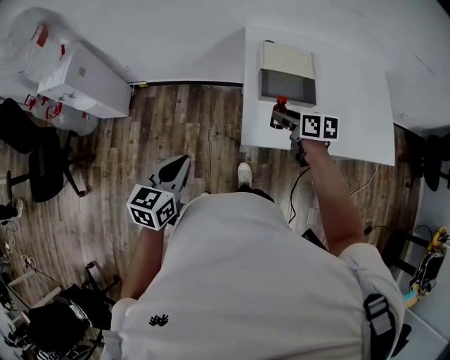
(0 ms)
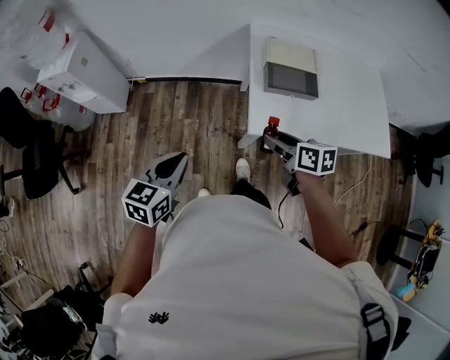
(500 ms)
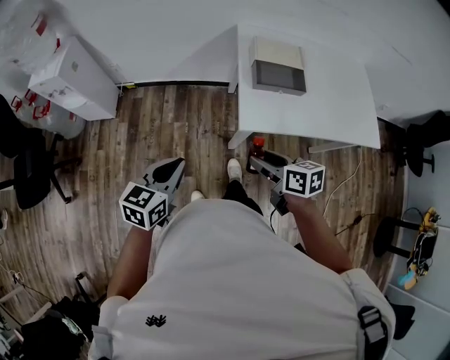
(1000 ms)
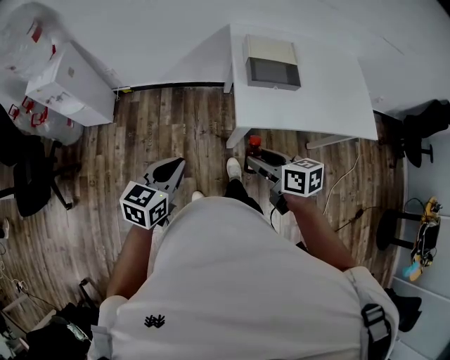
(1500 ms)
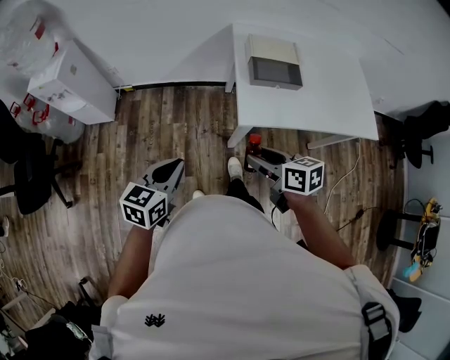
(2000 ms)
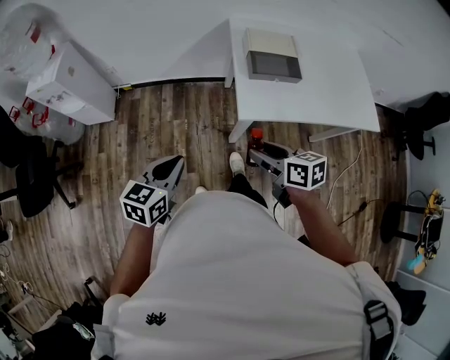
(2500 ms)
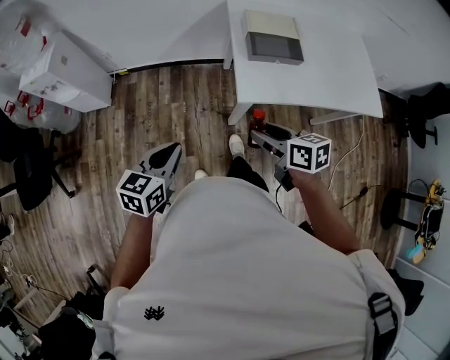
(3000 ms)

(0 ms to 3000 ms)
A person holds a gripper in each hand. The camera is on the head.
0 ms - 1500 ms: The right gripper is displaced backward and to the left by approximately 25 cm; the left gripper goes approximately 5 cm backward.
1500 ms - 3000 ms: The grippers stay close to where they were, moving slightly.

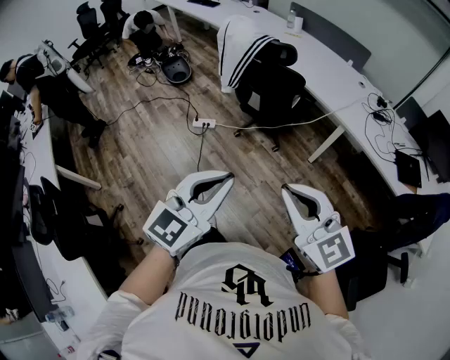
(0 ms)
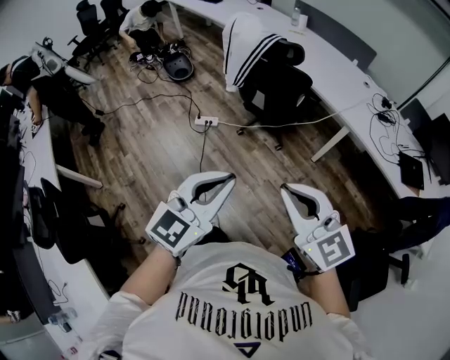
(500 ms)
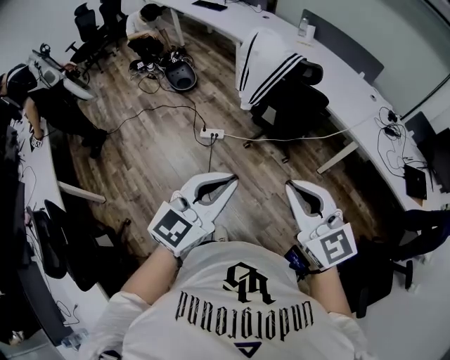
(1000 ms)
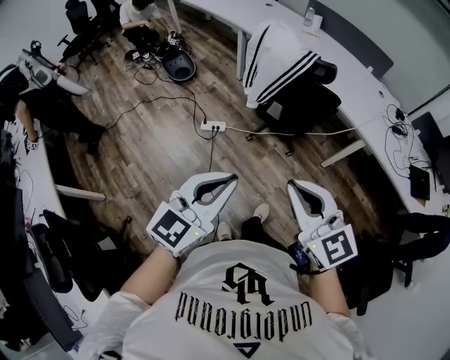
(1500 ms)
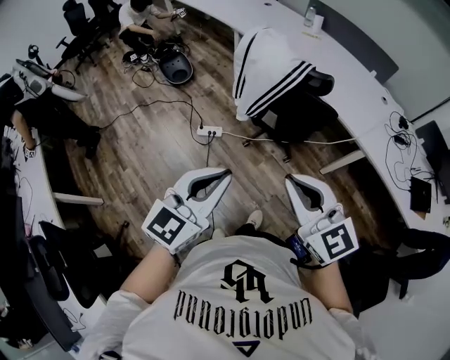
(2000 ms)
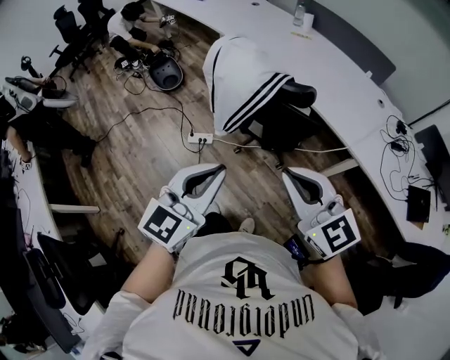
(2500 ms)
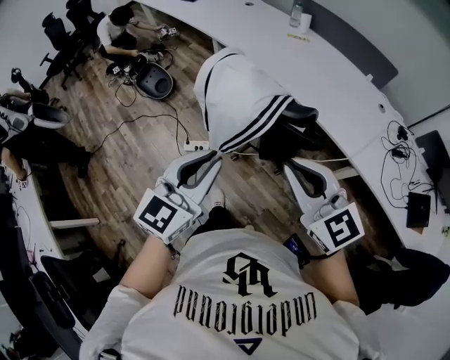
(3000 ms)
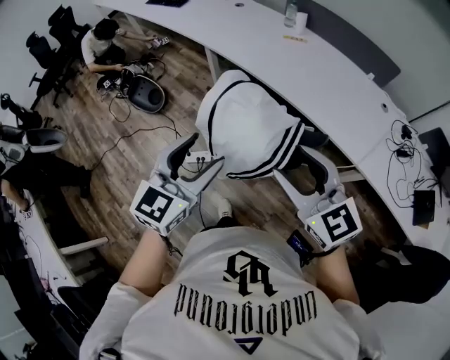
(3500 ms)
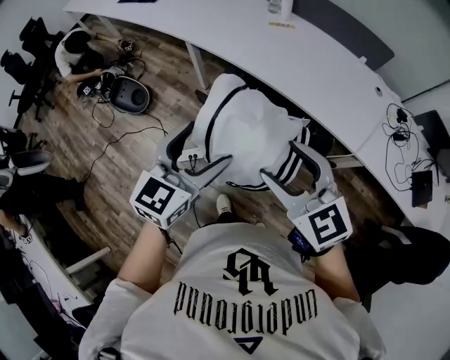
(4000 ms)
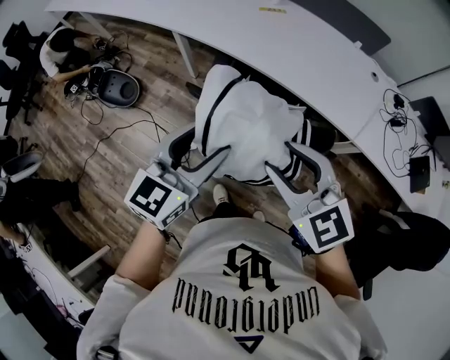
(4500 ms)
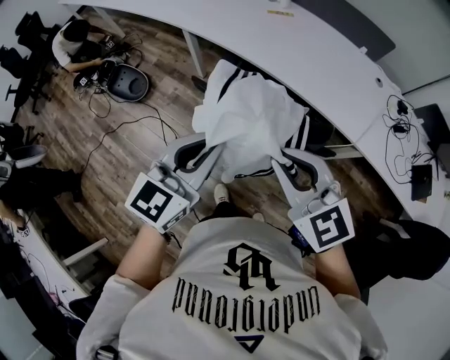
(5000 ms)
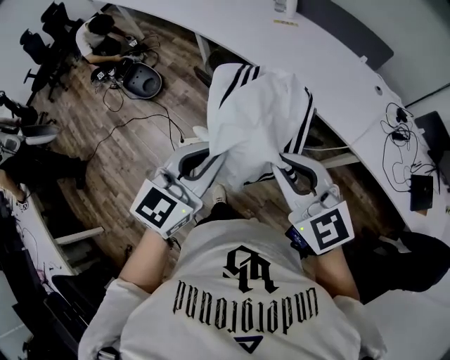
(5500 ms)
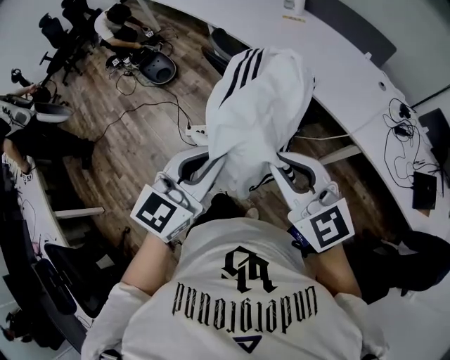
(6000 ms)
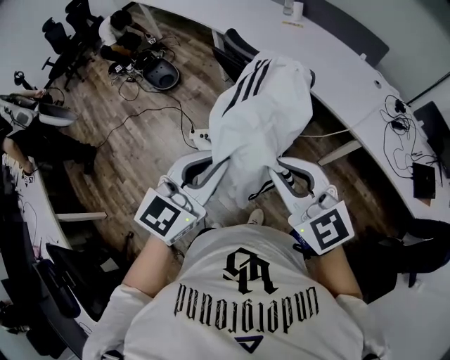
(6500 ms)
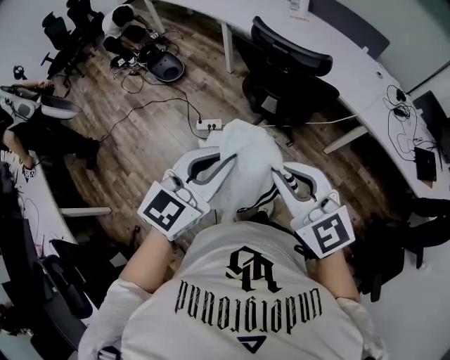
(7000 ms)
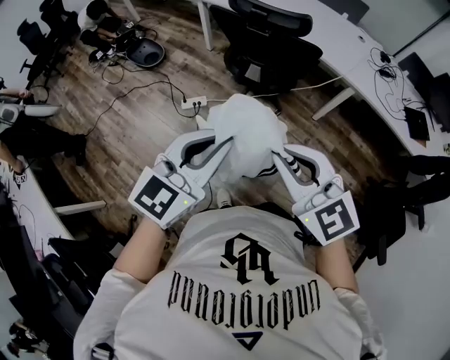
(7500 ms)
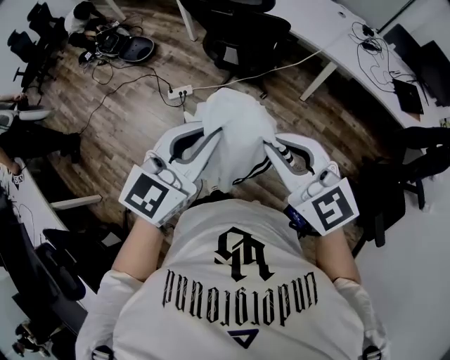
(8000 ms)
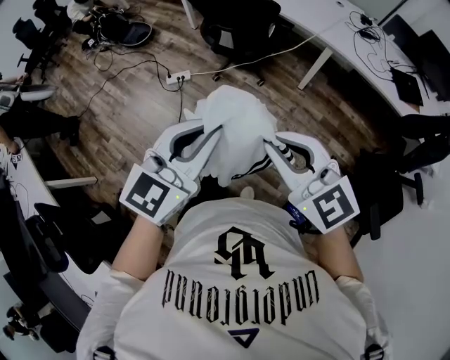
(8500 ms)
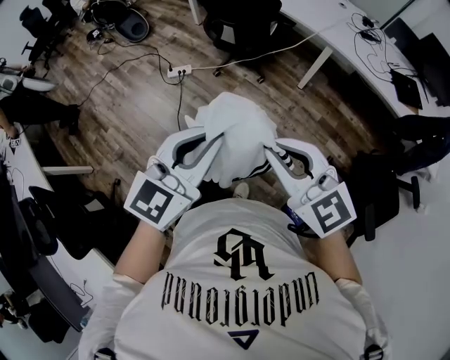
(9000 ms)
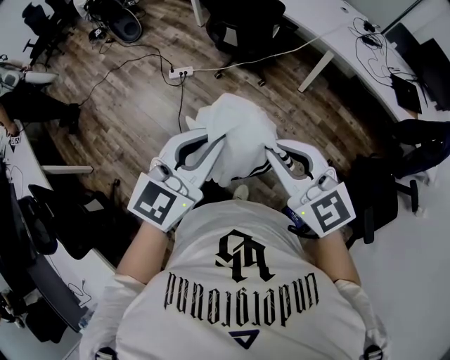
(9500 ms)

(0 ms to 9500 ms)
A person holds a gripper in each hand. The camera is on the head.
0 ms - 2000 ms: Both grippers travel together forward and to the left, about 30 cm.
2000 ms - 4000 ms: The grippers both shift forward by approximately 40 cm. The right gripper opens its fingers. Meanwhile the left gripper opens up.
4000 ms - 5500 ms: The grippers both shift backward and to the right by about 15 cm. The left gripper closes its fingers, while the right gripper closes up.
5500 ms - 7500 ms: Both grippers travel together backward, roughly 35 cm.
7500 ms - 9500 ms: The two grippers go some 25 cm backward and to the right.

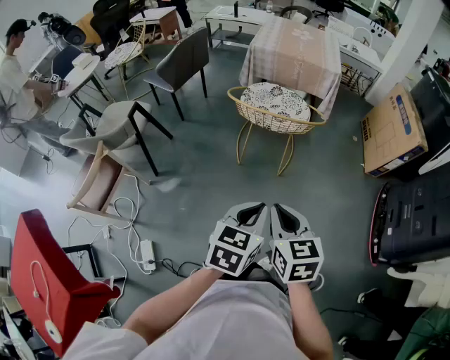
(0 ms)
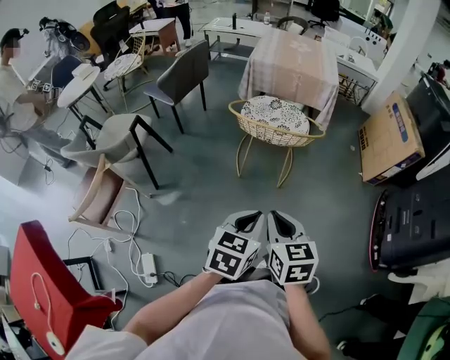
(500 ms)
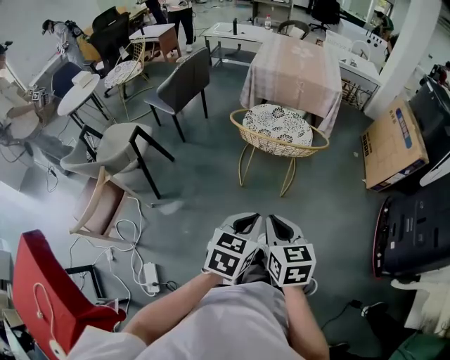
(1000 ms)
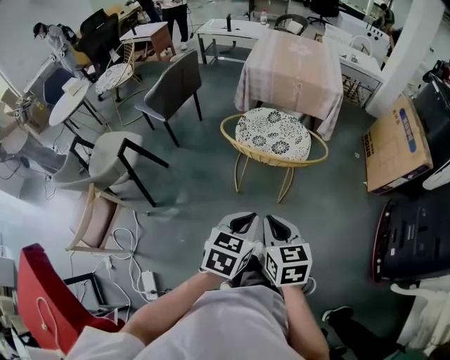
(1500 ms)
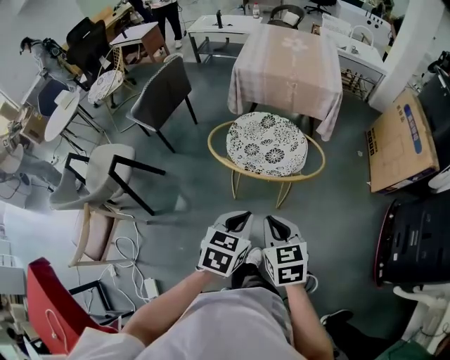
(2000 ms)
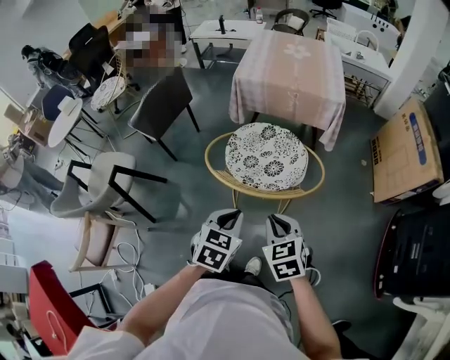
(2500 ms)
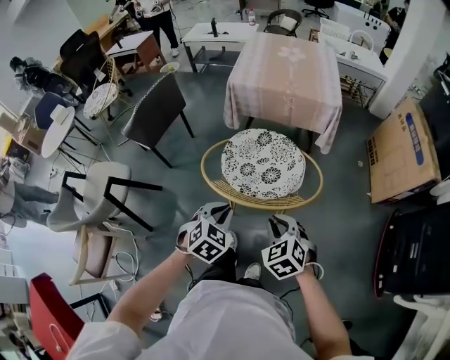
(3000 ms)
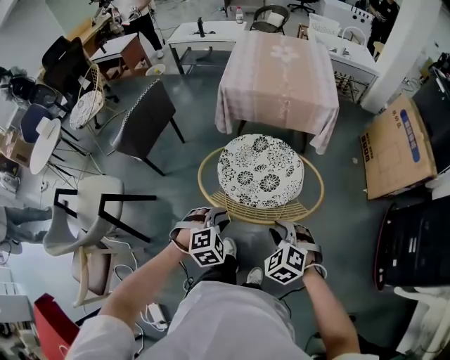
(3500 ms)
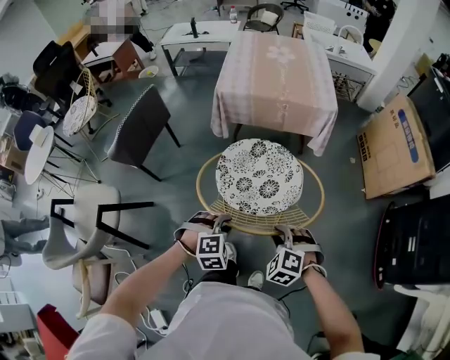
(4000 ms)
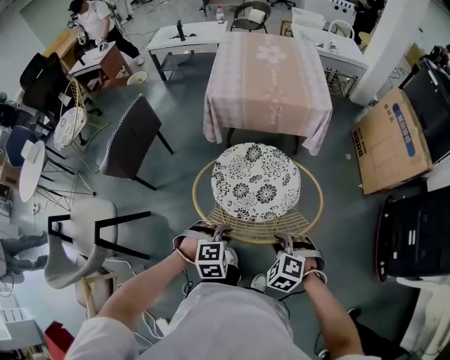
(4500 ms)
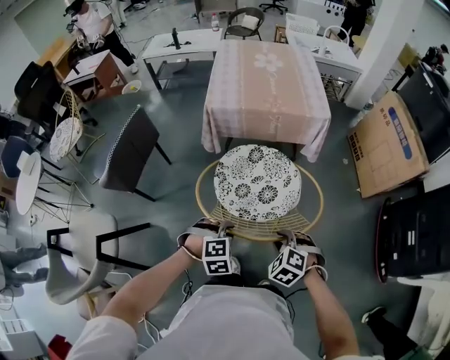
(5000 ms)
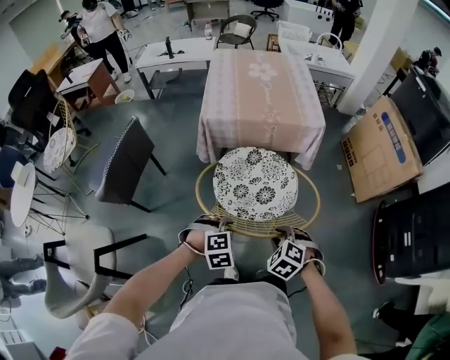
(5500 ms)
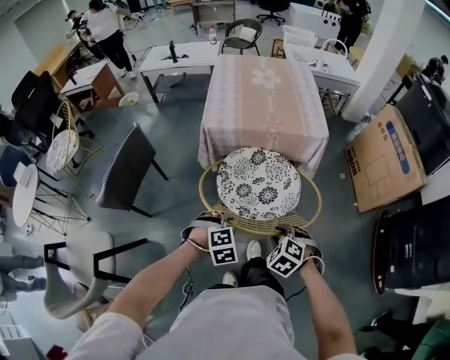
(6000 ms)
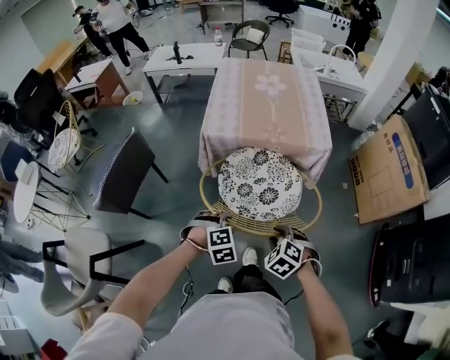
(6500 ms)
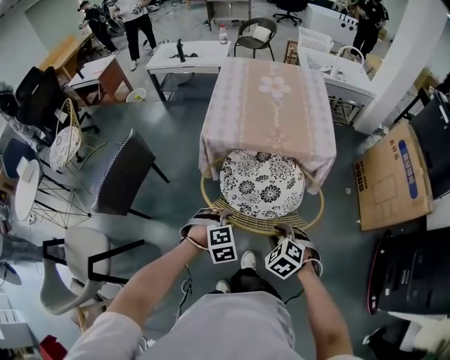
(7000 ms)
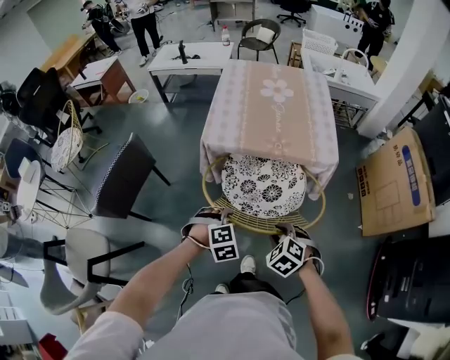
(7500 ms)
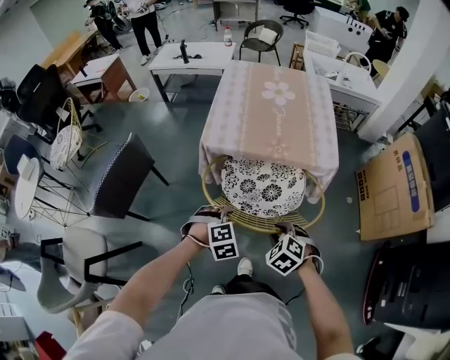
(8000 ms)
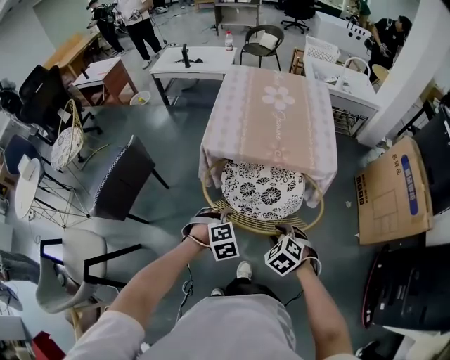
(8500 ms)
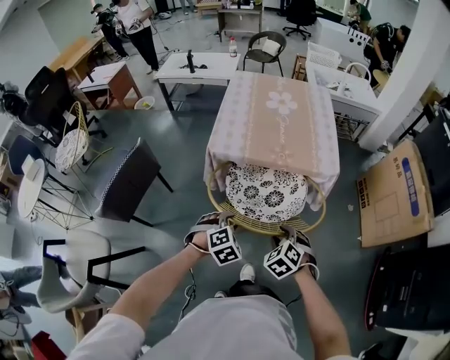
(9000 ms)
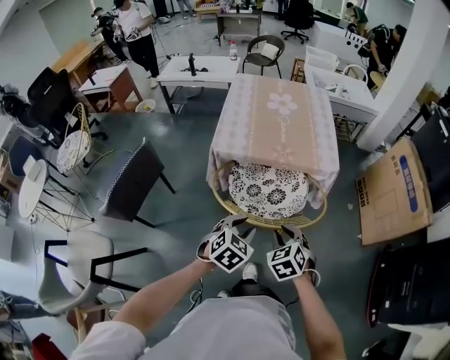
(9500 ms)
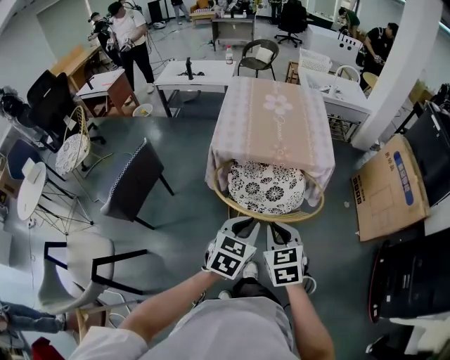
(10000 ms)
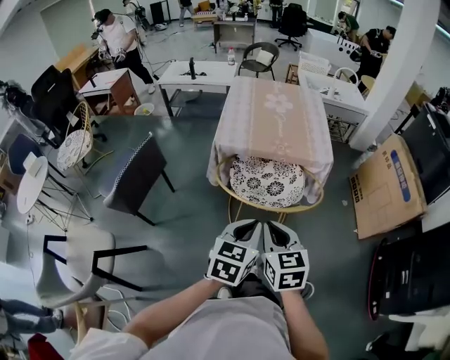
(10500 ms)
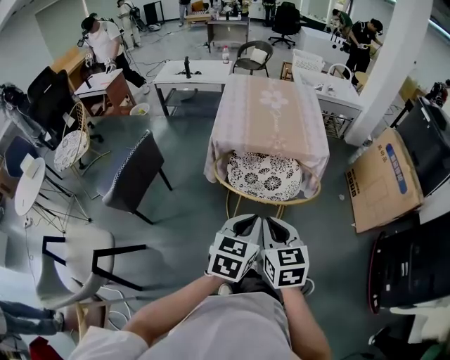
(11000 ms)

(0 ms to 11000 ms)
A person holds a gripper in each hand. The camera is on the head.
0 ms - 2000 ms: Both grippers travel together forward, approximately 25 cm.
2000 ms - 3500 ms: The right gripper moves forward and downward, some 15 cm, and twists about 40 degrees counterclockwise, seen from behind. The left gripper travels forward, downward and to the left by about 20 cm, rolls clockwise, seen from behind, by about 60 degrees, and opens.
3500 ms - 5500 ms: The grippers both shift forward by approximately 10 cm.
5500 ms - 7500 ms: The two grippers go about 20 cm forward.
7500 ms - 9000 ms: There are only small adjustments of the grippers.
9000 ms - 11000 ms: The grippers both shift upward and backward by approximately 25 cm. The left gripper tips its fingers upward by roughly 30 degrees, and closes its fingers. Meanwhile the right gripper points its fingers approximately 30 degrees further upward, and closes up.

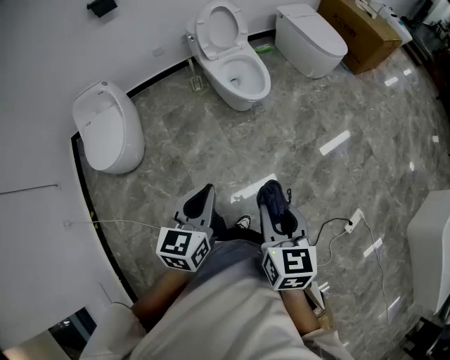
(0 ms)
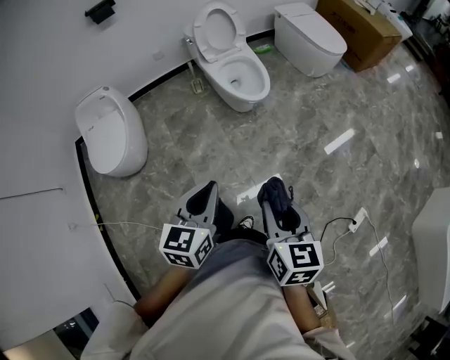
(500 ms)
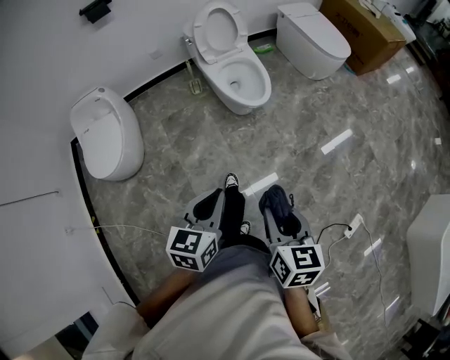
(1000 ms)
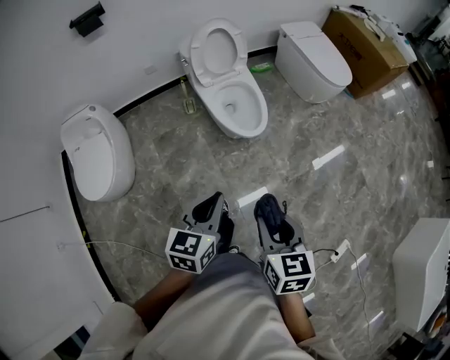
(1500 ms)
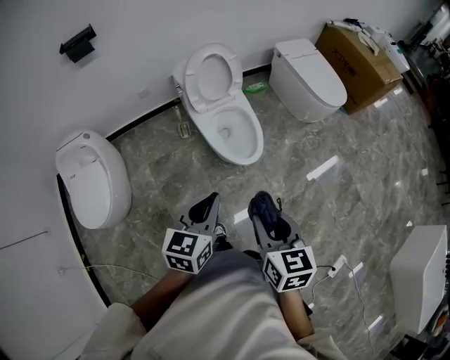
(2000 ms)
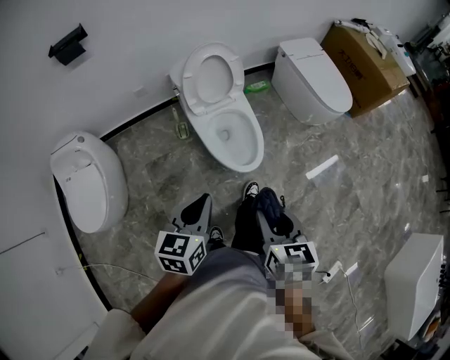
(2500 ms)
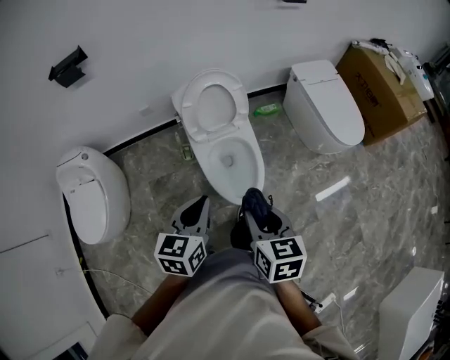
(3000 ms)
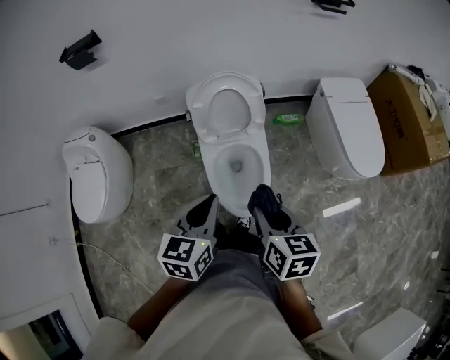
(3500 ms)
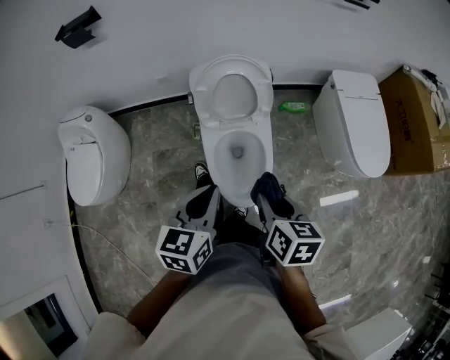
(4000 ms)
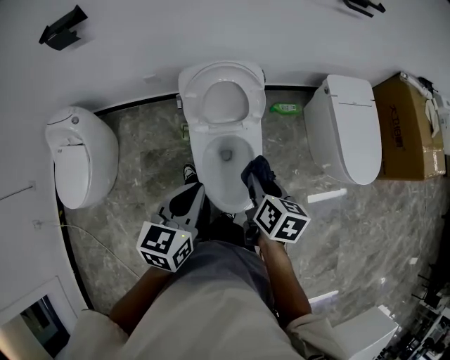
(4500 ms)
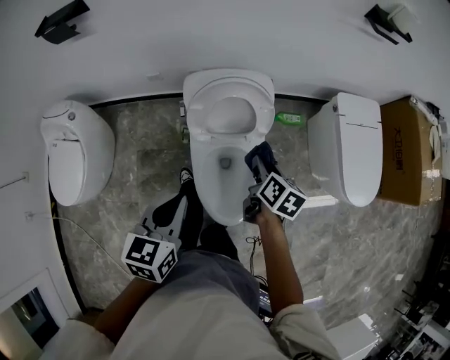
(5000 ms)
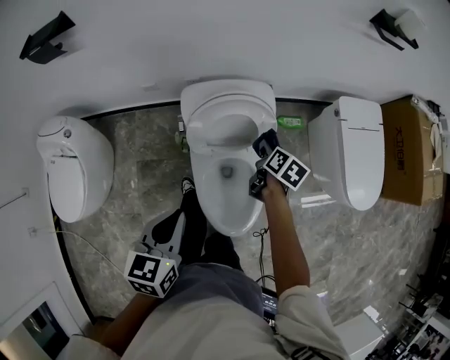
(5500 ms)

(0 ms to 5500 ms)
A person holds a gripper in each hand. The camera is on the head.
0 ms - 2000 ms: The two grippers go about 35 cm forward.
2000 ms - 3500 ms: Both grippers travel together forward, some 30 cm. The left gripper changes its angle by roughly 20 degrees. The right gripper rotates roughly 20 degrees.
3500 ms - 5500 ms: The right gripper goes approximately 40 cm forward and downward, and turns by some 30 degrees. The left gripper shifts roughly 20 cm forward, to the left and downward.
